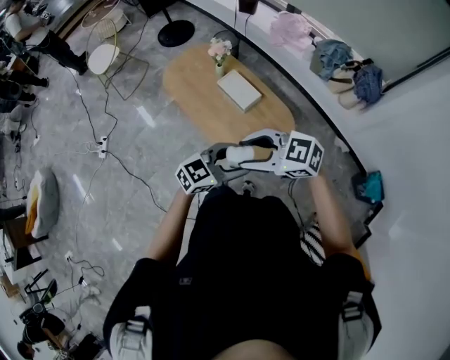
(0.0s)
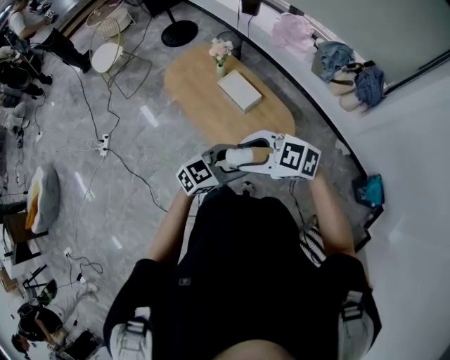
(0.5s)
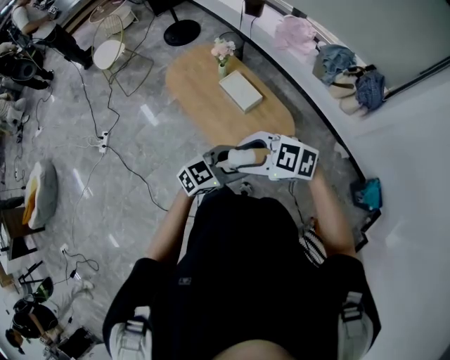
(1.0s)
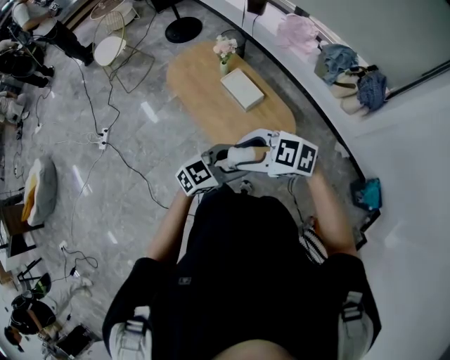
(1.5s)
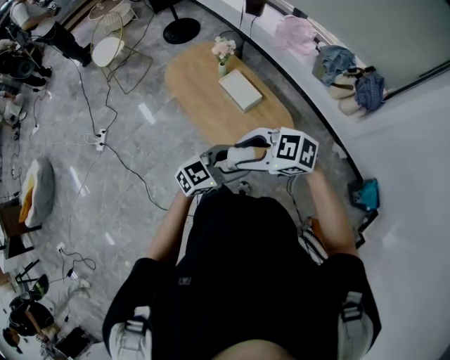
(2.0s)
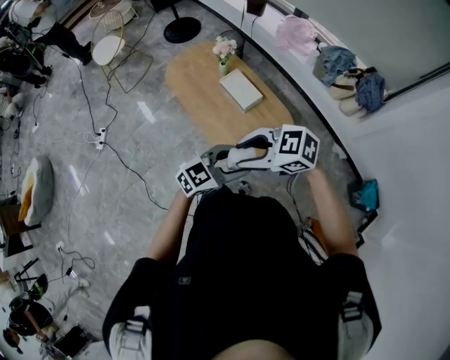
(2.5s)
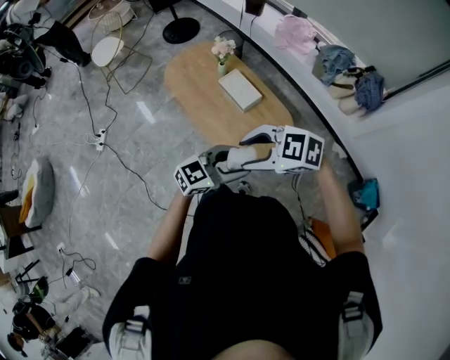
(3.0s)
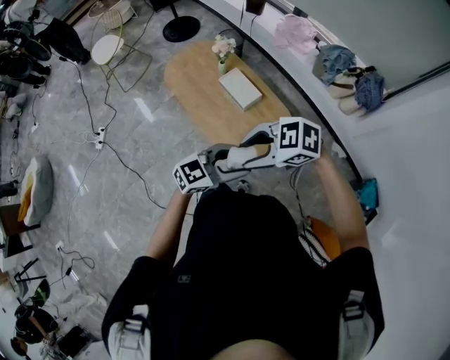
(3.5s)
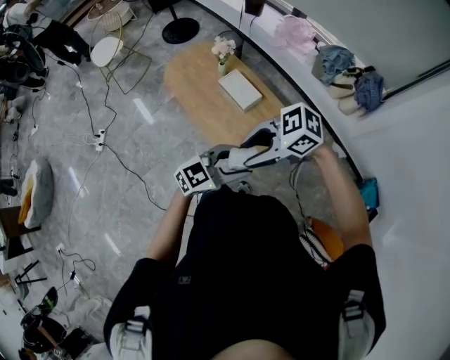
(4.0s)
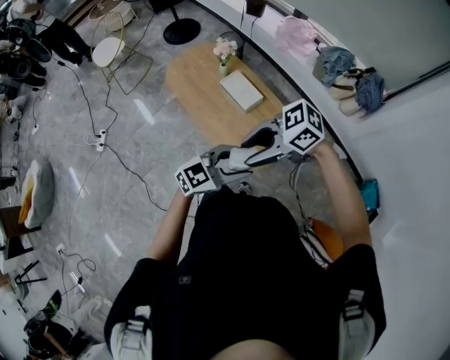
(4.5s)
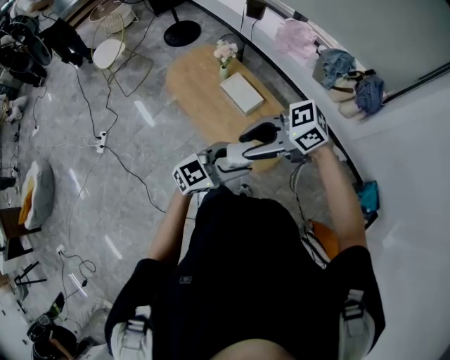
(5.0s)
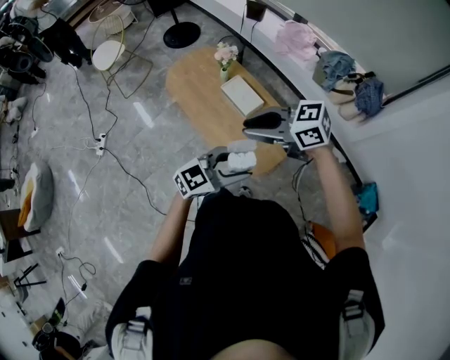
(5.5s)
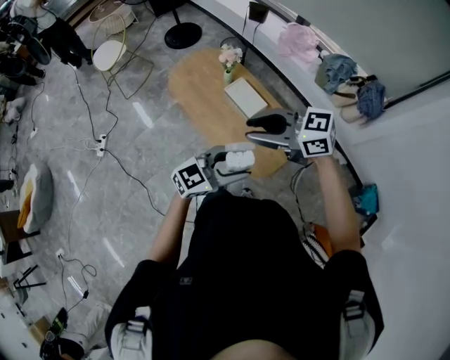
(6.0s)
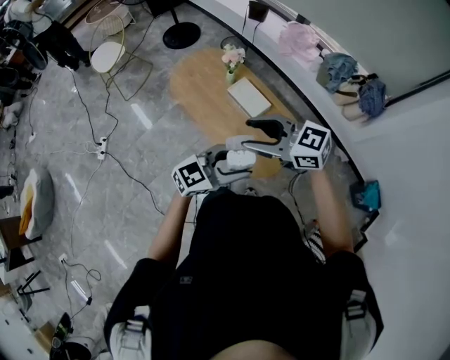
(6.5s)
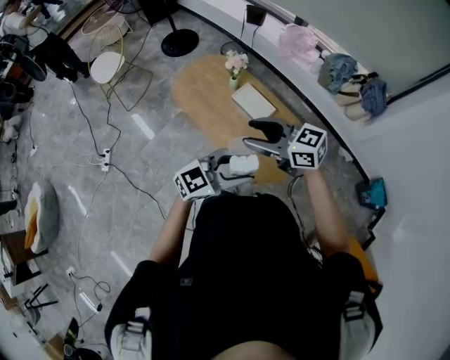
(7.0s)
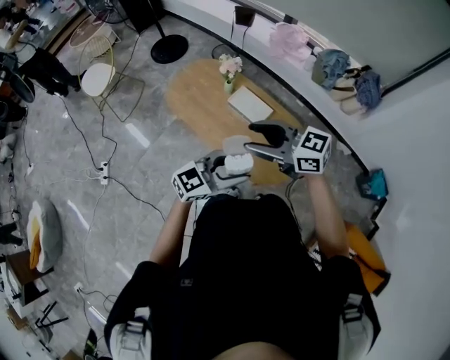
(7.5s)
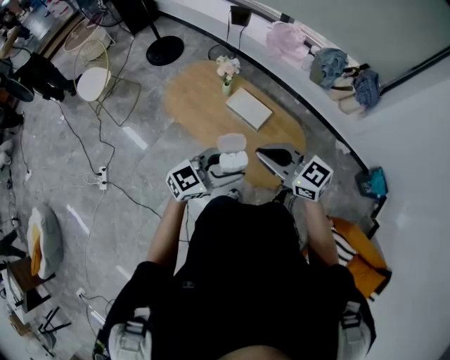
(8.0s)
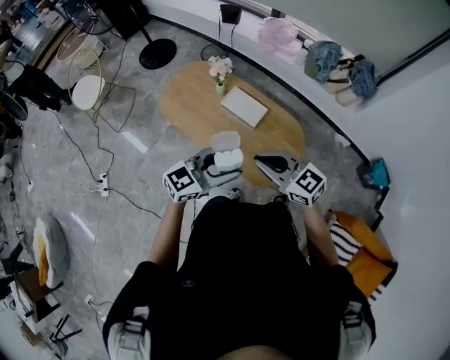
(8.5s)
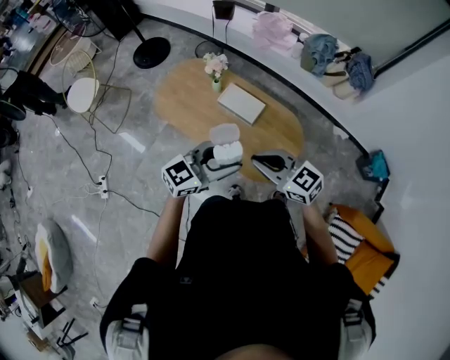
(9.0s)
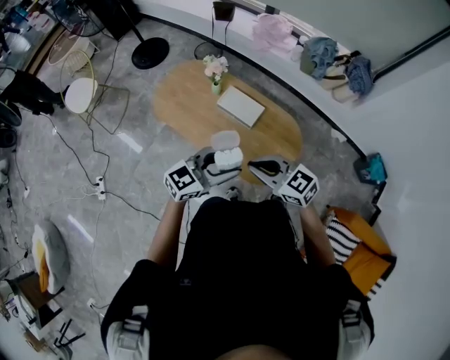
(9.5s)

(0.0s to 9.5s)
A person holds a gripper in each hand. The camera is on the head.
0.0s - 2.0s: The grippers stay close to where they were, moving slightly.
2.0s - 4.0s: The right gripper rotates about 20 degrees.
4.0s - 5.5s: The right gripper moves about 10 cm, turns by some 30 degrees, and closes its fingers.
5.5s - 7.5s: The right gripper changes place by approximately 10 cm, swivels approximately 20 degrees, and opens. Meanwhile the left gripper ends up roughly 15 cm from where it was.
7.5s - 9.5s: The left gripper shifts by about 5 cm. Meanwhile the right gripper shifts roughly 10 cm downward, and closes its fingers.

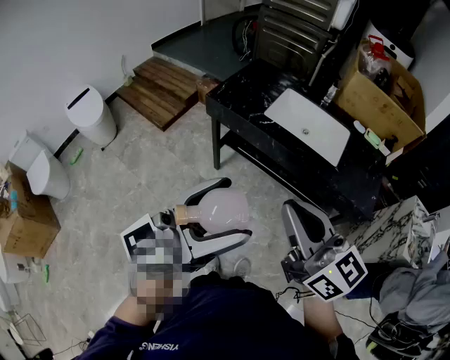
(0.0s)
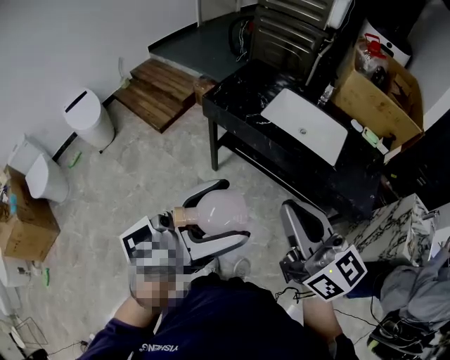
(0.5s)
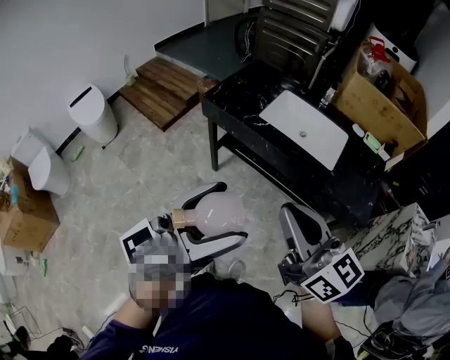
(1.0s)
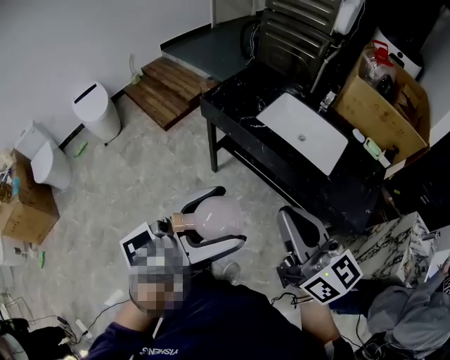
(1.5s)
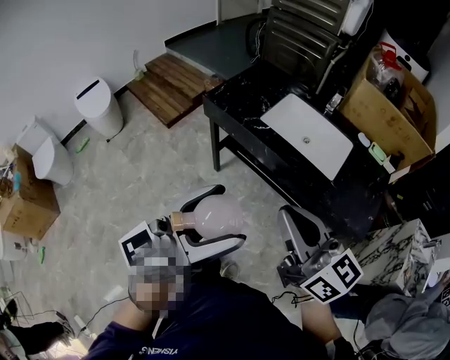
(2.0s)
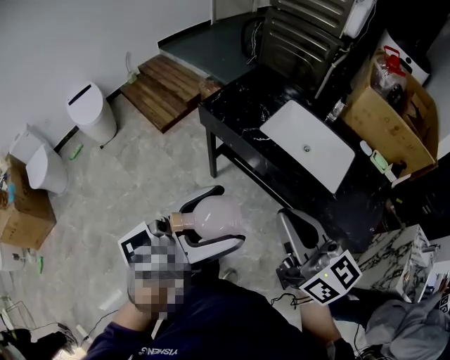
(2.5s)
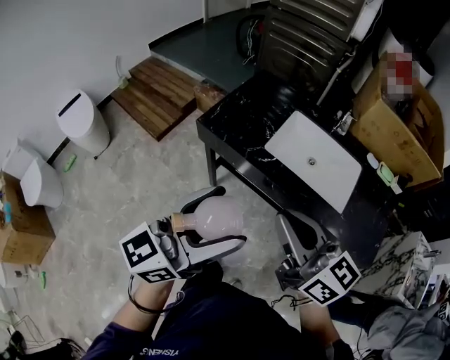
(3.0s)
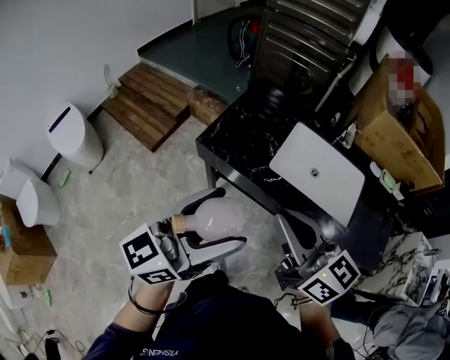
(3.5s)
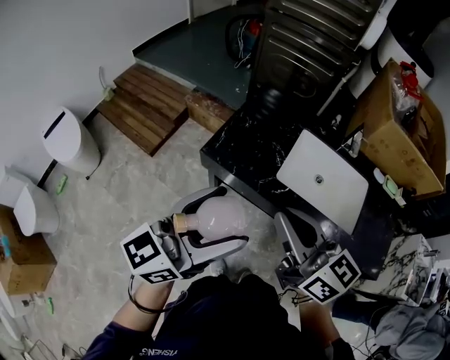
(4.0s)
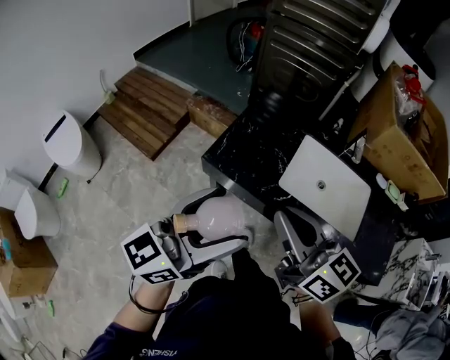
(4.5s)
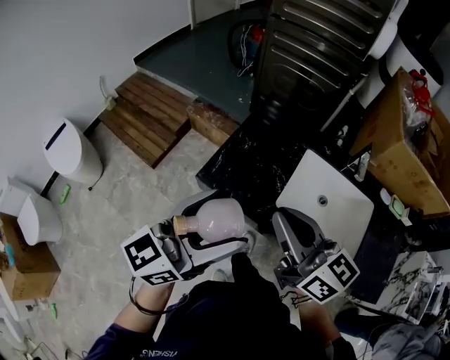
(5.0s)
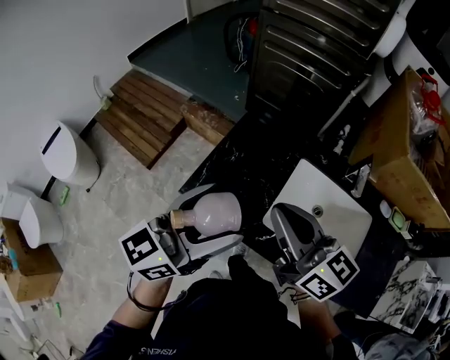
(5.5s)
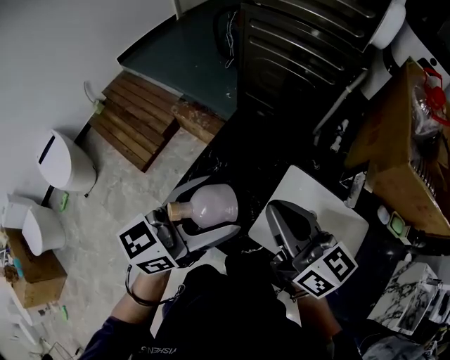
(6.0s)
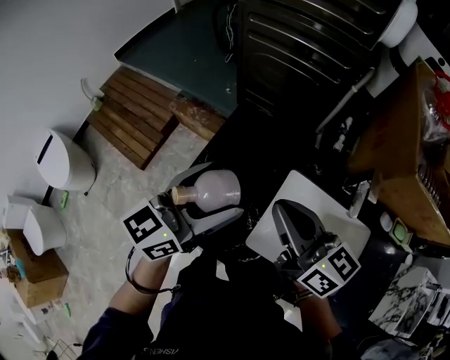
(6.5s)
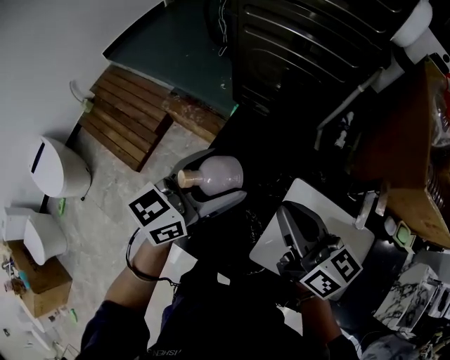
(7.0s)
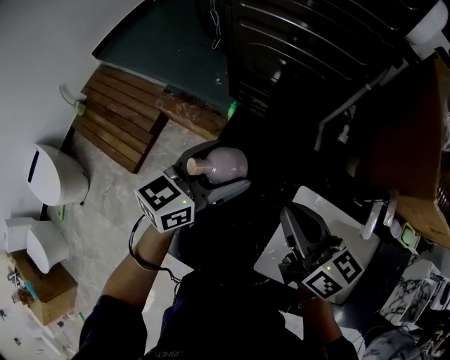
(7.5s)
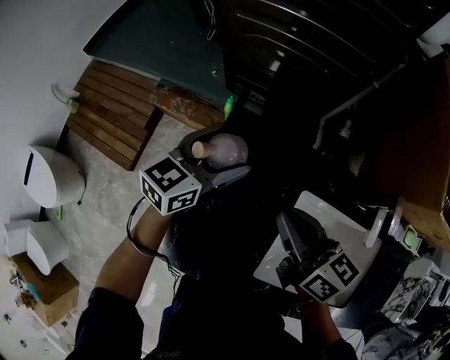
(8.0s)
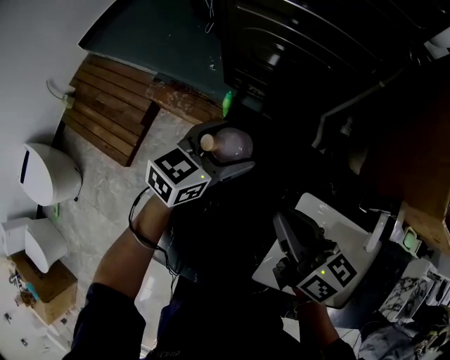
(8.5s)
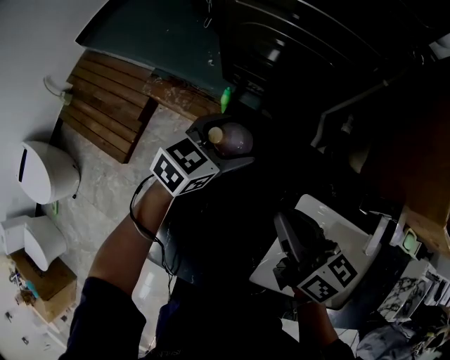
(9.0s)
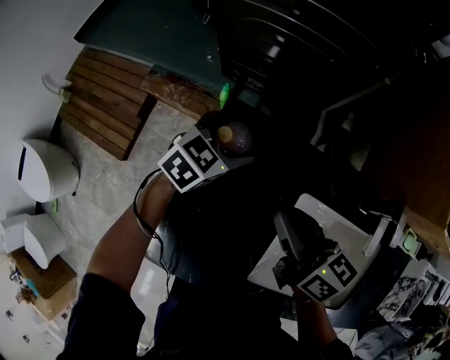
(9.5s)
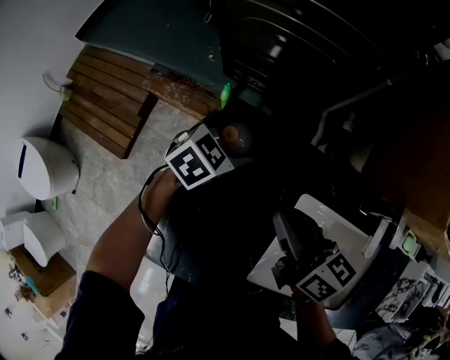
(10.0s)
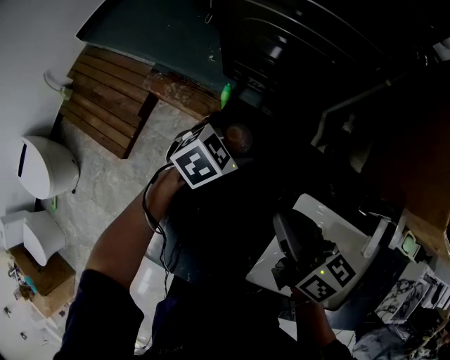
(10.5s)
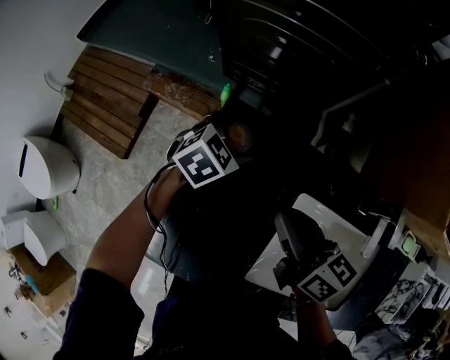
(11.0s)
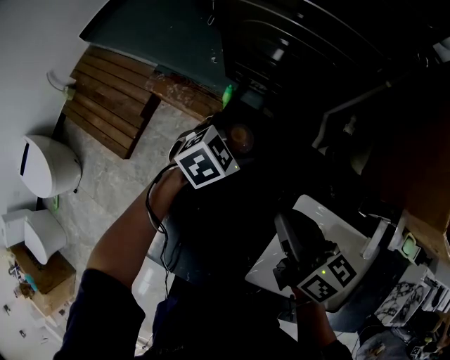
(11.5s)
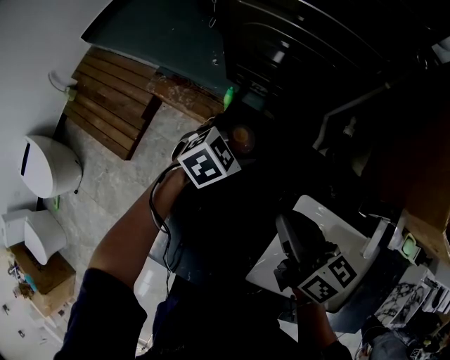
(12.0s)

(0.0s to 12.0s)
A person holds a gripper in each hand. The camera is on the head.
0.0s - 2.0s: The two grippers go roughly 5 cm to the right.
2.0s - 4.0s: The two grippers go some 35 cm forward and to the left.
4.0s - 6.0s: The grippers both shift forward by about 25 cm.
6.0s - 8.0s: The left gripper travels forward and downward by approximately 35 cm, and rotates some 20 degrees. The right gripper goes approximately 20 cm forward and downward.
8.0s - 10.0s: The left gripper moves downward, about 10 cm, and changes its angle by roughly 30 degrees.
10.0s - 12.0s: There are only small adjustments of the grippers.

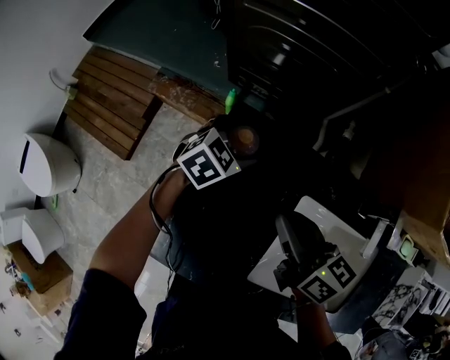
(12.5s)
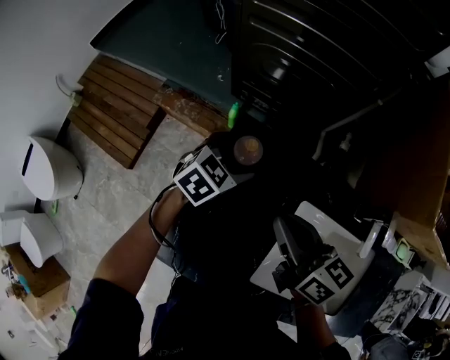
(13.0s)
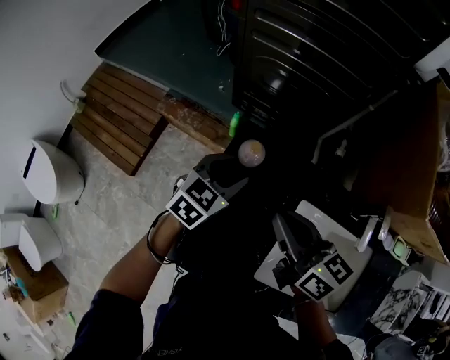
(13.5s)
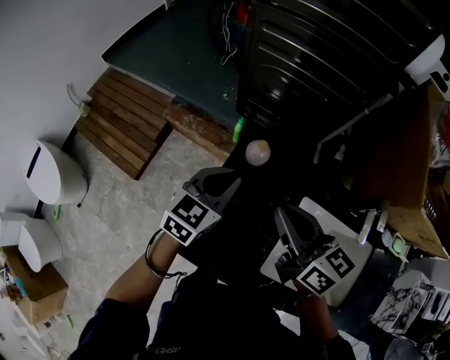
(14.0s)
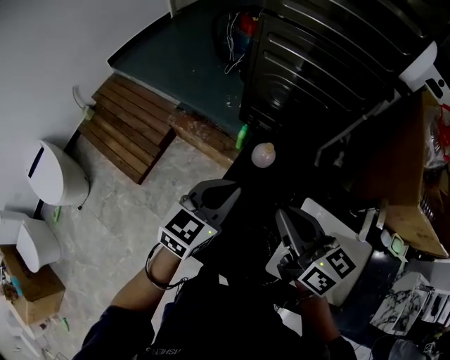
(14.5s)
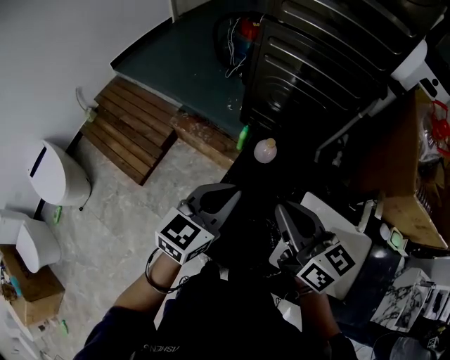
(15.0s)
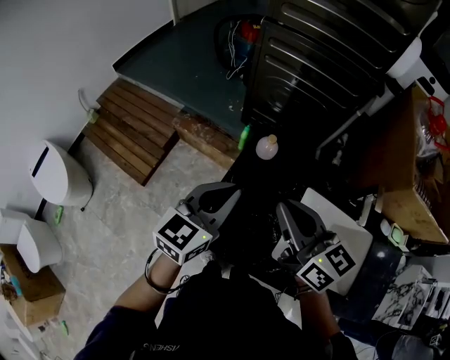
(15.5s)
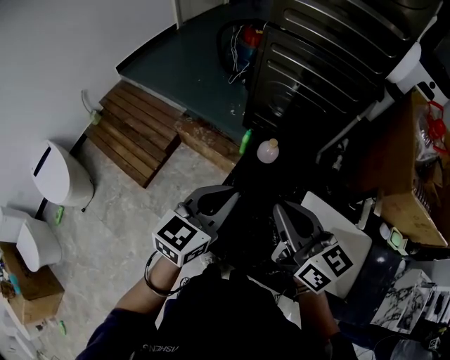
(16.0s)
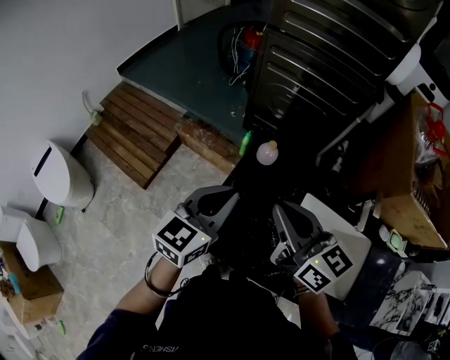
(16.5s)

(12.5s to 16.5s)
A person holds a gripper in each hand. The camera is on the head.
12.5s - 14.5s: The left gripper moves upward, backward and to the left, about 25 cm, changes its angle by roughly 40 degrees, and closes. The right gripper goes some 15 cm upward, to the left and backward.
14.5s - 16.5s: The left gripper moves backward and upward, roughly 10 cm; the right gripper moves approximately 5 cm.

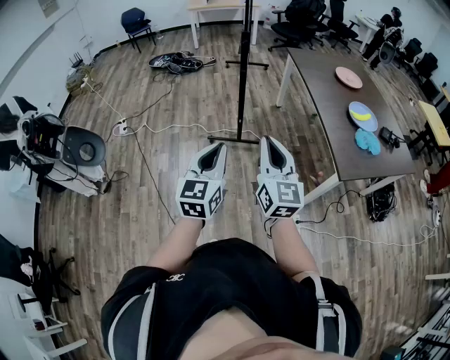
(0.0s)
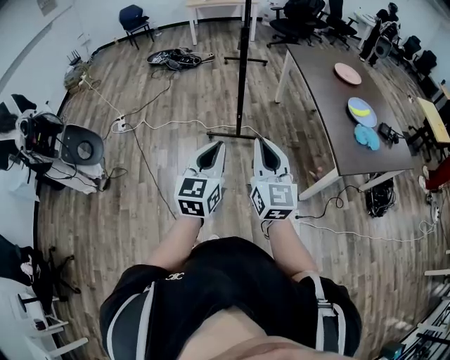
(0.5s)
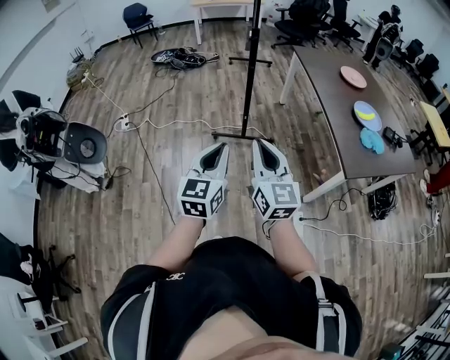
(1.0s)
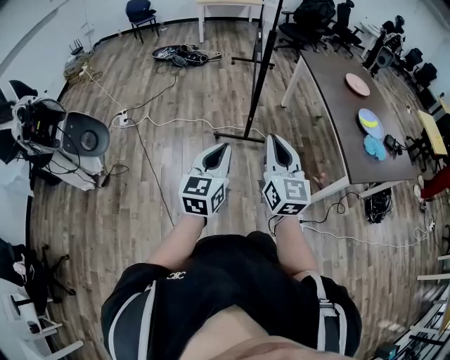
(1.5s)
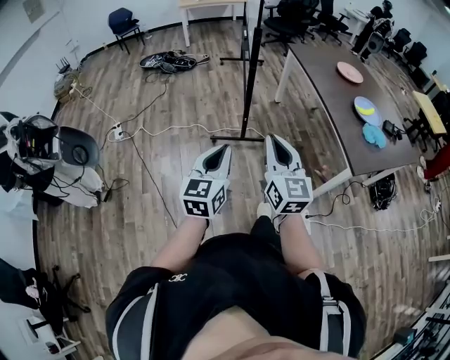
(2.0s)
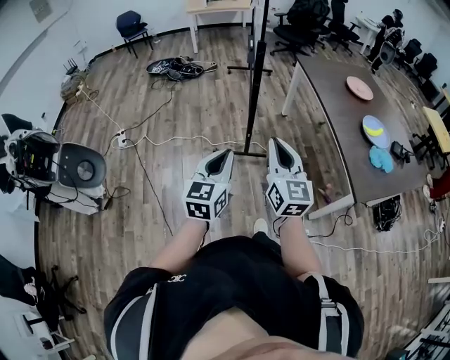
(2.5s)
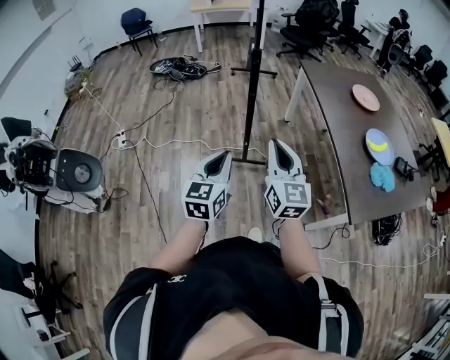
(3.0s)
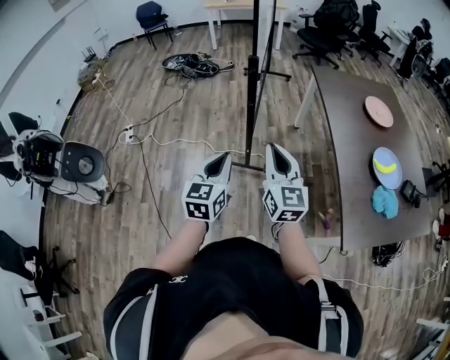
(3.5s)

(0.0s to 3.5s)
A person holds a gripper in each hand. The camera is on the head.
0.0s - 2.0s: Both grippers move to the left, about 10 cm.
2.0s - 3.5s: The grippers both shift forward and to the right by about 30 cm.
